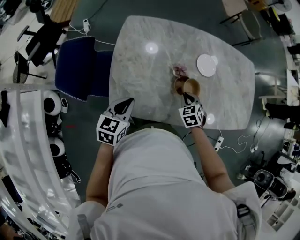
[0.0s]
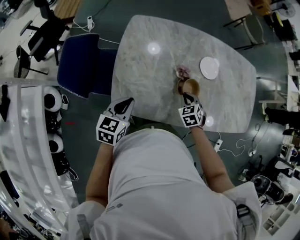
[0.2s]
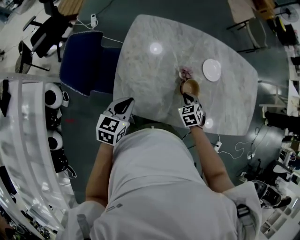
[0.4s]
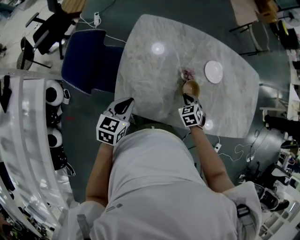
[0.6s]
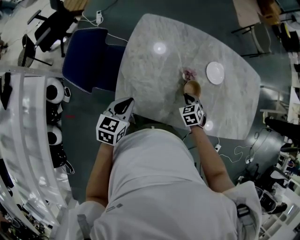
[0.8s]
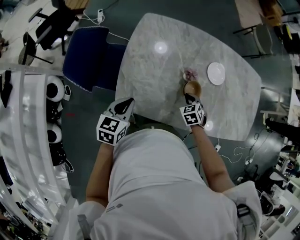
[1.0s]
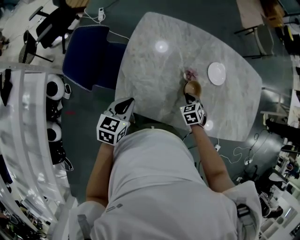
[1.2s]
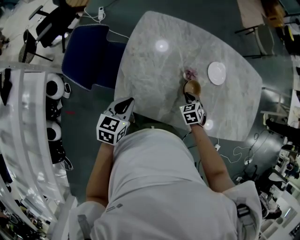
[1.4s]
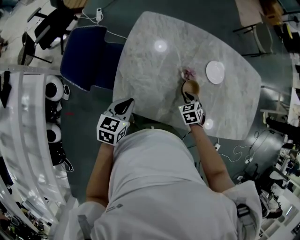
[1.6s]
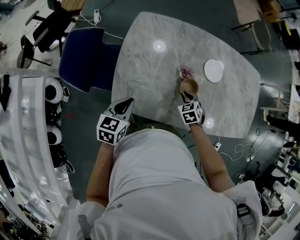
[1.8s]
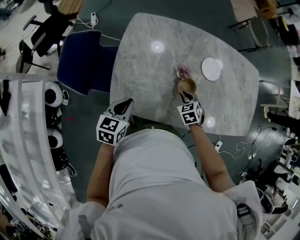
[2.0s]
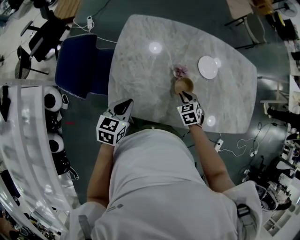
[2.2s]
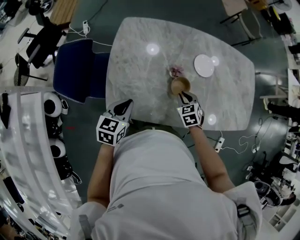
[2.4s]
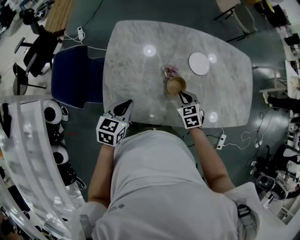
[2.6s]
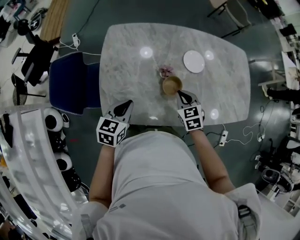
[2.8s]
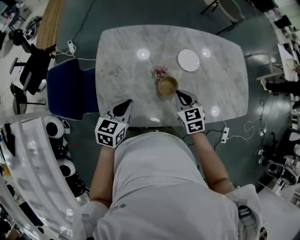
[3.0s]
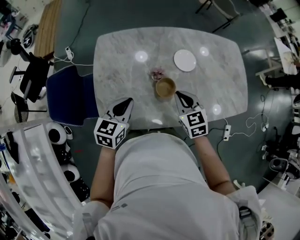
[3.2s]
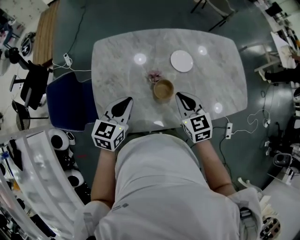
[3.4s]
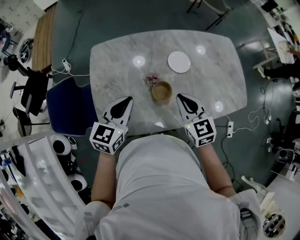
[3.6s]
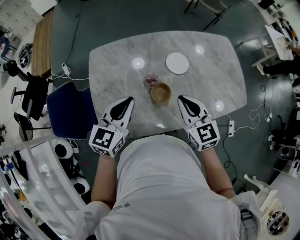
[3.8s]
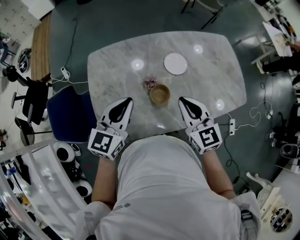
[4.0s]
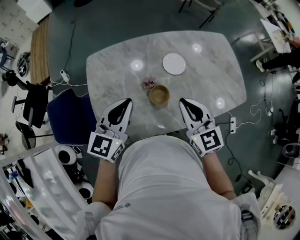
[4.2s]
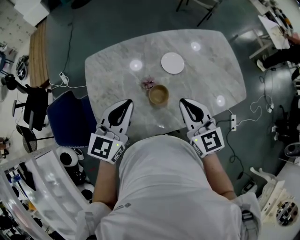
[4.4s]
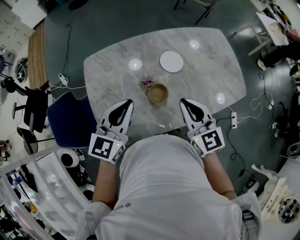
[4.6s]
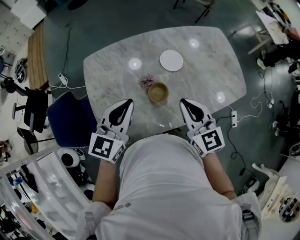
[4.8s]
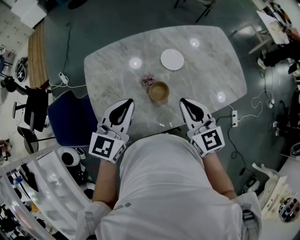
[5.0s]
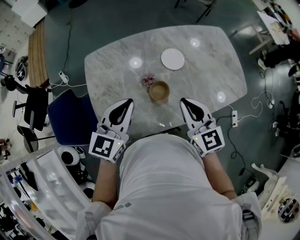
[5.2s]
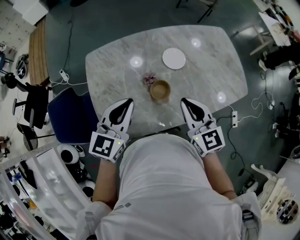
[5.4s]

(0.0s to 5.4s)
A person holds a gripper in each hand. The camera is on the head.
0.0s - 1.4s: The grippers move only a little.
1.4s - 2.8s: The right gripper is displaced upward by about 10 cm, and changes its angle by roughly 20 degrees; the left gripper moves to the right, some 5 cm.
2.8s - 4.0s: The left gripper shifts roughly 15 cm upward and forward, and rotates approximately 30 degrees. Meanwhile the right gripper travels upward by roughly 20 cm, and rotates about 30 degrees.
4.0s - 5.4s: There are only small adjustments of the grippers.

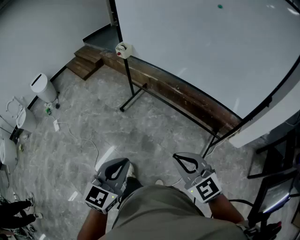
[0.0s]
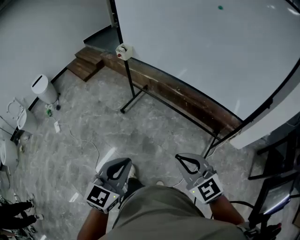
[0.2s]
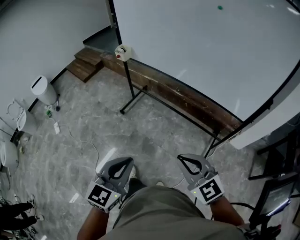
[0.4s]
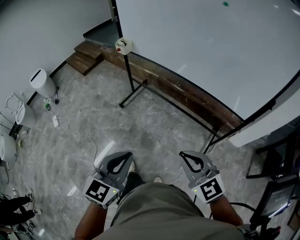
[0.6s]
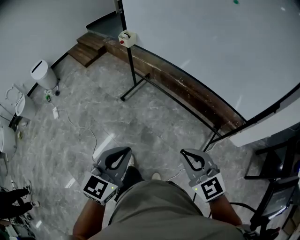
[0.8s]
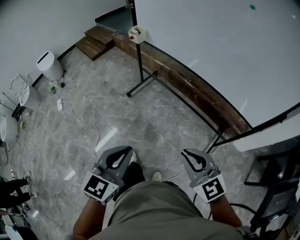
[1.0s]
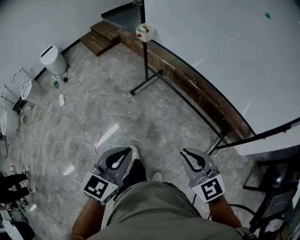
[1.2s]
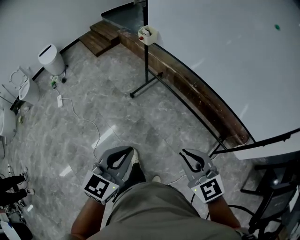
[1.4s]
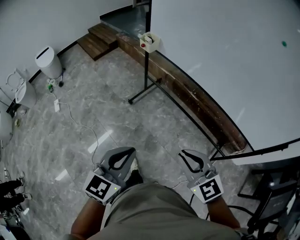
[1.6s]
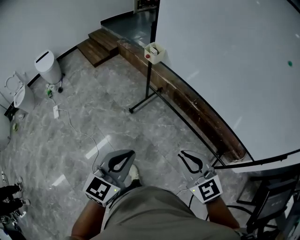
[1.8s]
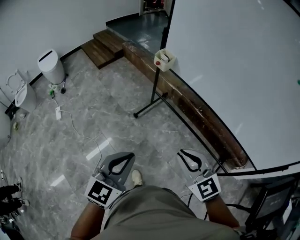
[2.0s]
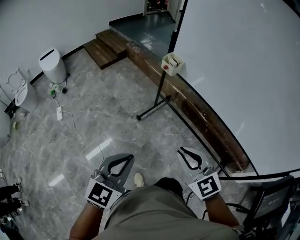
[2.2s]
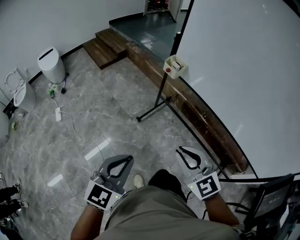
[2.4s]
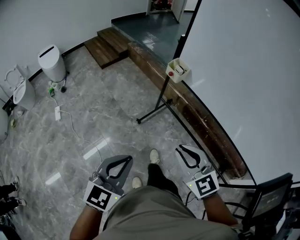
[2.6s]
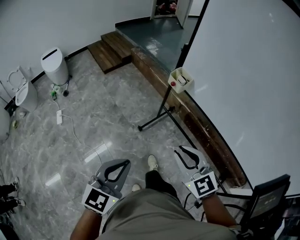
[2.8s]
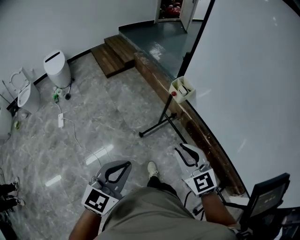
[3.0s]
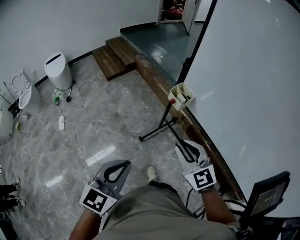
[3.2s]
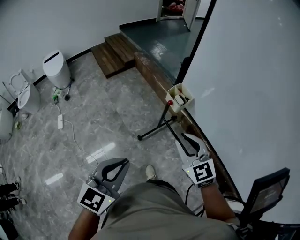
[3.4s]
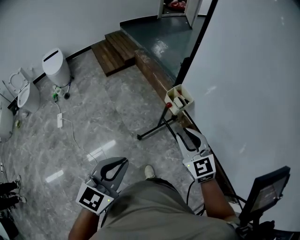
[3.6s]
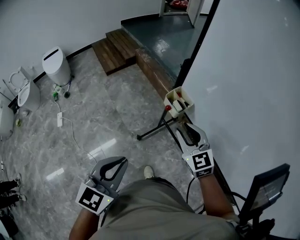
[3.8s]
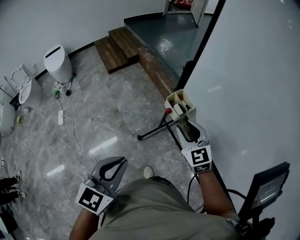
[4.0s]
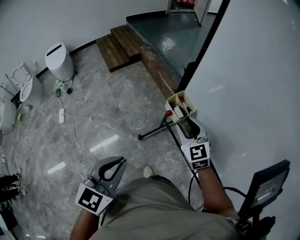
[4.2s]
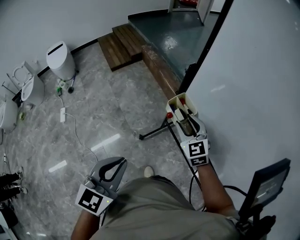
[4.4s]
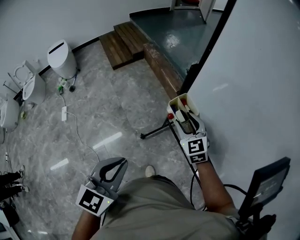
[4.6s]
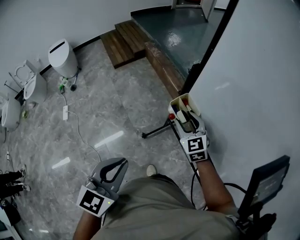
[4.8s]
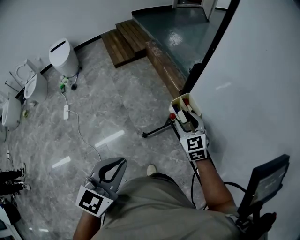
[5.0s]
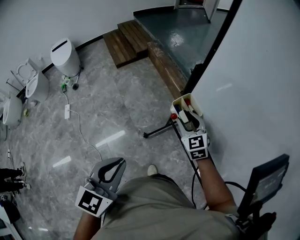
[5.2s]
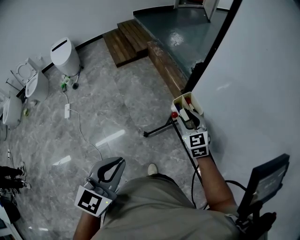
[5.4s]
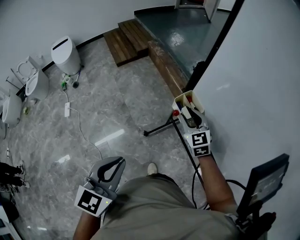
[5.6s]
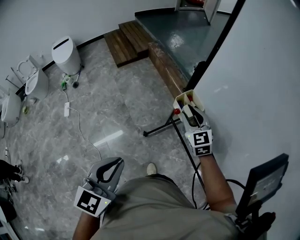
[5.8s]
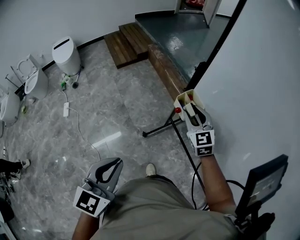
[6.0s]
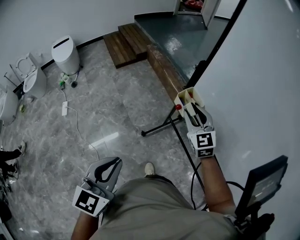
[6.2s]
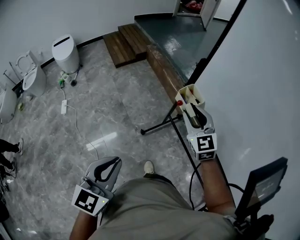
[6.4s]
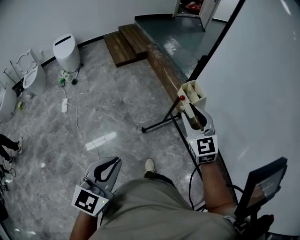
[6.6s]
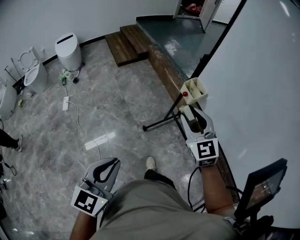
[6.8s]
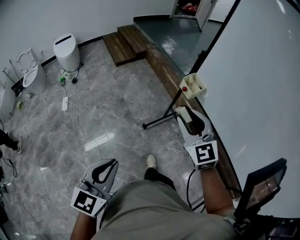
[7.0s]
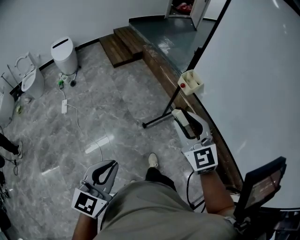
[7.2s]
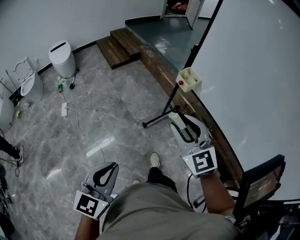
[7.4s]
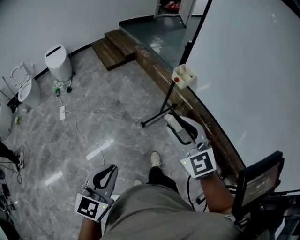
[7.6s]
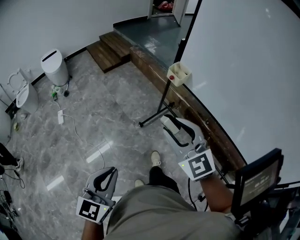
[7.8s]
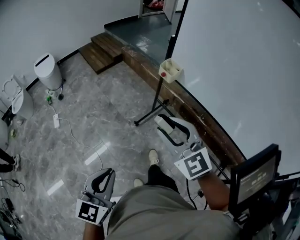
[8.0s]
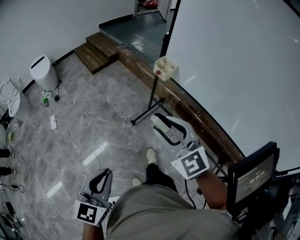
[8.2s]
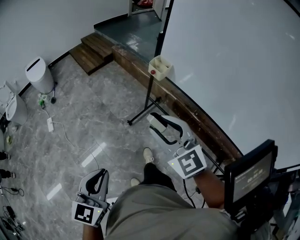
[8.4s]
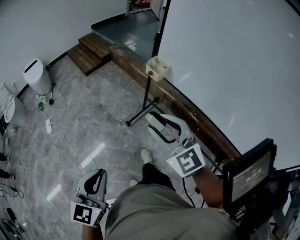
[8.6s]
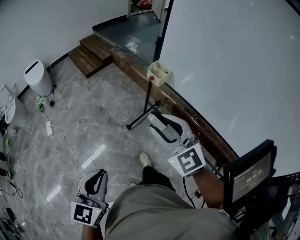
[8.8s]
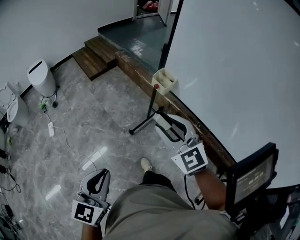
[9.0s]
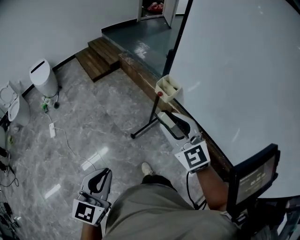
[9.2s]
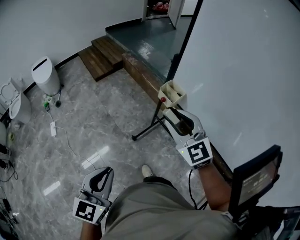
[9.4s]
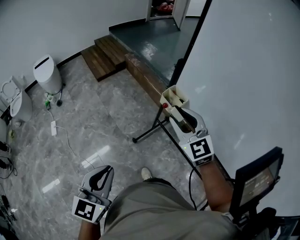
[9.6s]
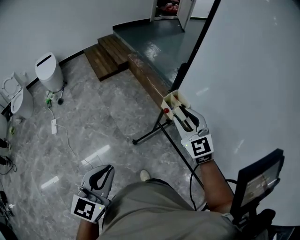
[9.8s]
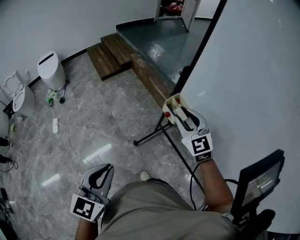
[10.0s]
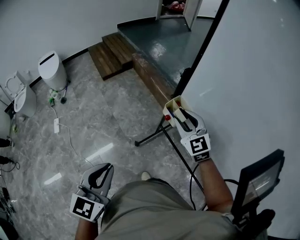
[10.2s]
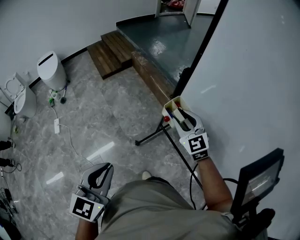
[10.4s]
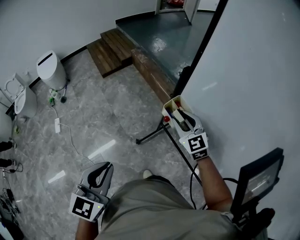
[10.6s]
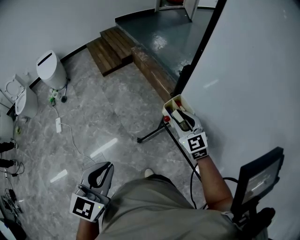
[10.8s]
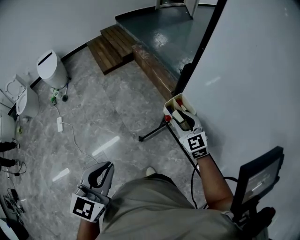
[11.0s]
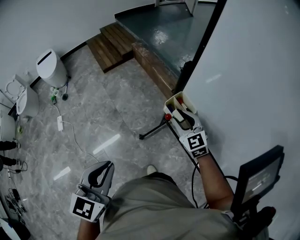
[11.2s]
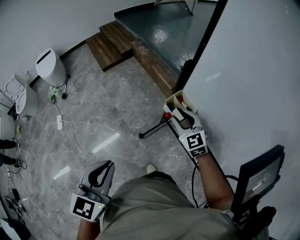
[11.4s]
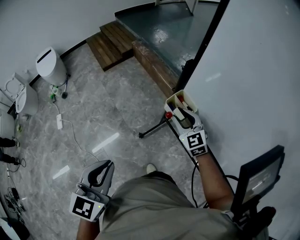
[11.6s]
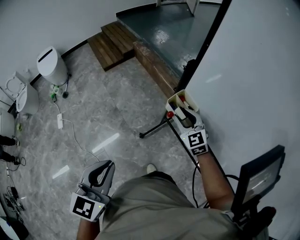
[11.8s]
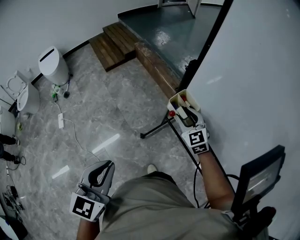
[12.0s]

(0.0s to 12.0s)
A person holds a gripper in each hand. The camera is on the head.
0.0s - 1.6s: Both grippers move forward and to the left, approximately 20 cm.
1.6s - 3.0s: Both grippers travel together forward and to the left, about 35 cm.
3.0s - 4.4s: The right gripper travels forward by about 30 cm, and opens its fingers. Meanwhile the left gripper is displaced forward by roughly 20 cm.
4.4s - 6.0s: The left gripper ends up roughly 5 cm from where it was.
6.0s - 7.6s: Both grippers travel together backward and to the left, about 35 cm.
7.6s - 9.0s: The grippers both shift forward and to the right by about 10 cm.
9.0s - 10.4s: Both grippers move forward, roughly 25 cm.
10.4s - 12.0s: The right gripper heads downward, covering about 5 cm.

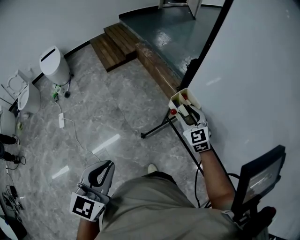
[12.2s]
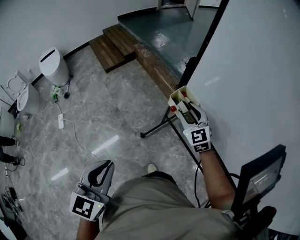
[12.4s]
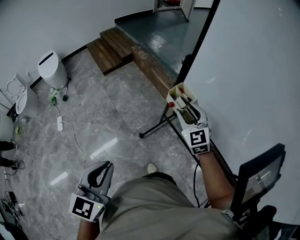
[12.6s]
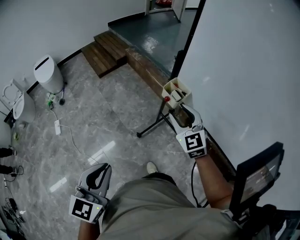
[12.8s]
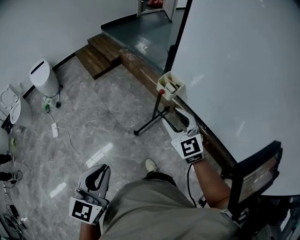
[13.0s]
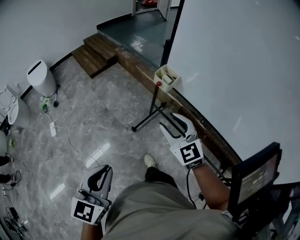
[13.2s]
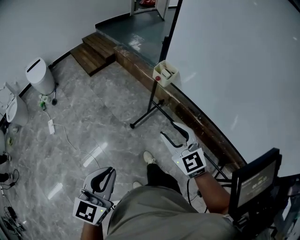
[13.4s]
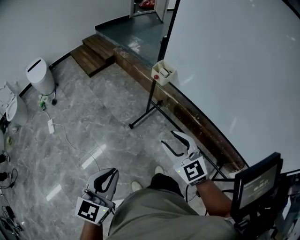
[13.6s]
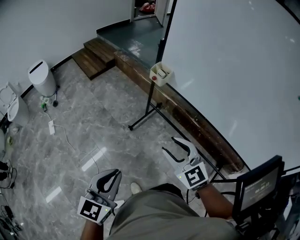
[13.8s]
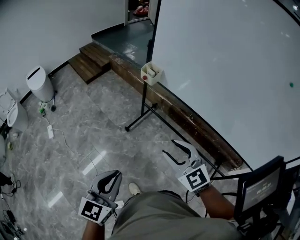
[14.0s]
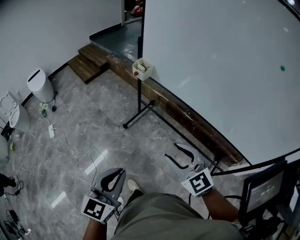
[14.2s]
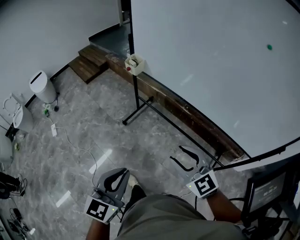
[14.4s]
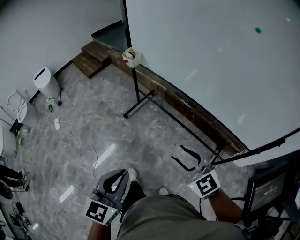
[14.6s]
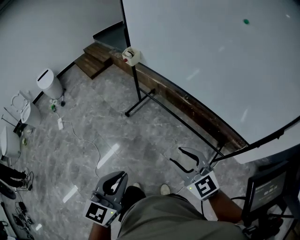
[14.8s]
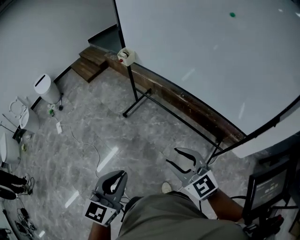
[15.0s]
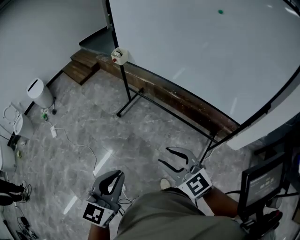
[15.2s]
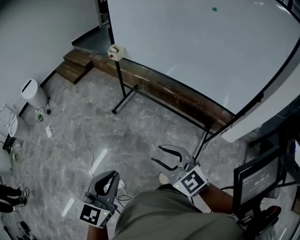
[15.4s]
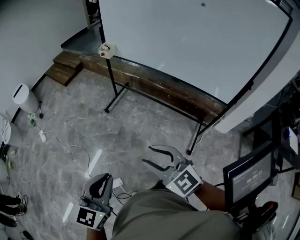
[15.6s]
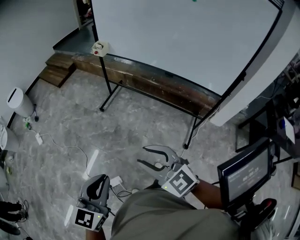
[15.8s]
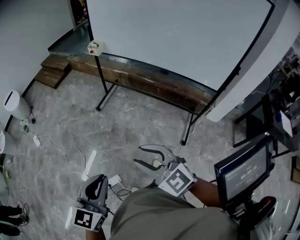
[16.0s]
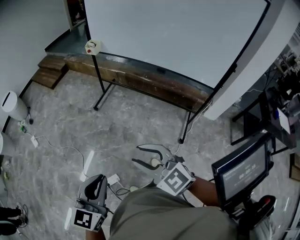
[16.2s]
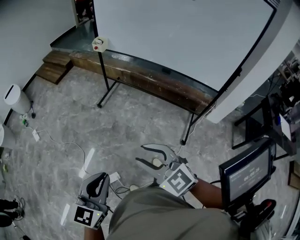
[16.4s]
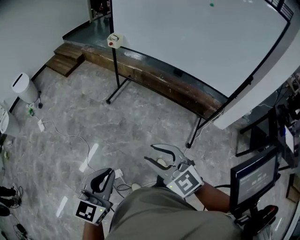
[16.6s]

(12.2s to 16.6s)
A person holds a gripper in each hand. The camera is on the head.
12.2s - 13.6s: The right gripper heads backward, covering approximately 40 cm; the left gripper goes approximately 30 cm backward.
13.6s - 15.2s: The two grippers travel together, backward and to the right, about 40 cm.
15.2s - 16.6s: The grippers both shift to the left and backward by roughly 20 cm.

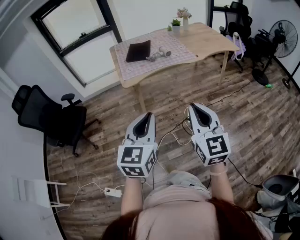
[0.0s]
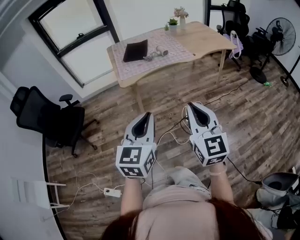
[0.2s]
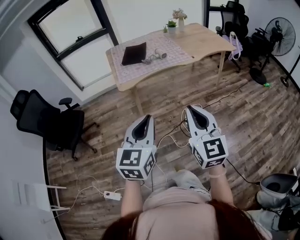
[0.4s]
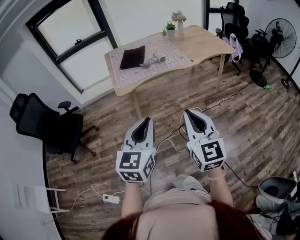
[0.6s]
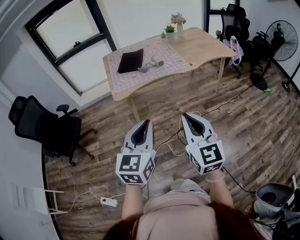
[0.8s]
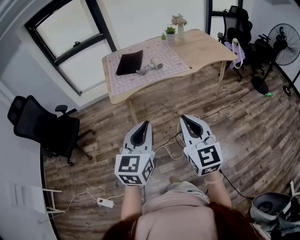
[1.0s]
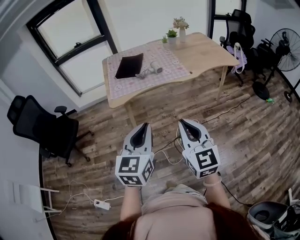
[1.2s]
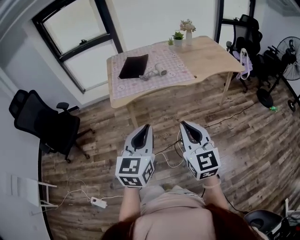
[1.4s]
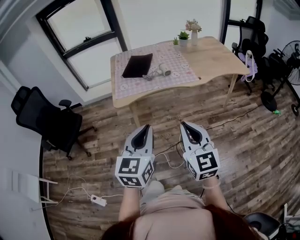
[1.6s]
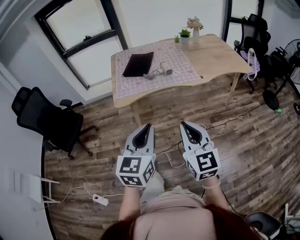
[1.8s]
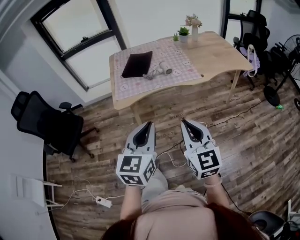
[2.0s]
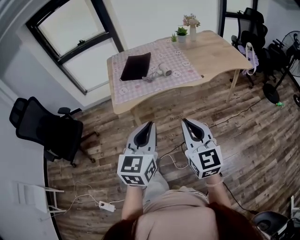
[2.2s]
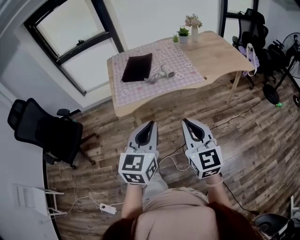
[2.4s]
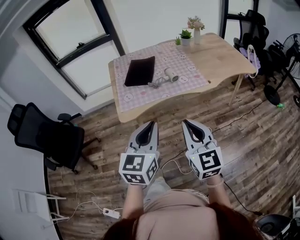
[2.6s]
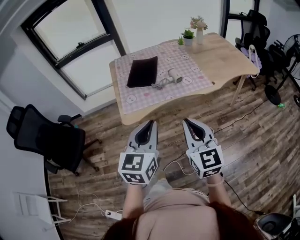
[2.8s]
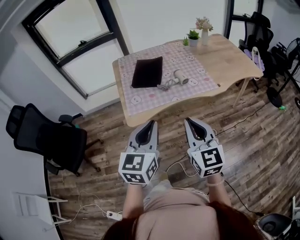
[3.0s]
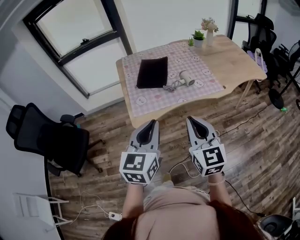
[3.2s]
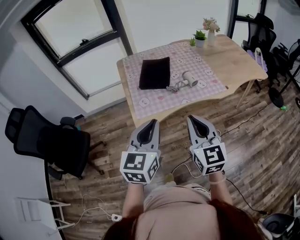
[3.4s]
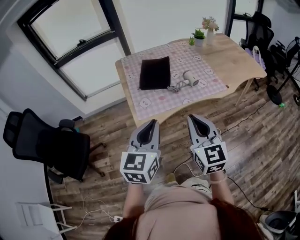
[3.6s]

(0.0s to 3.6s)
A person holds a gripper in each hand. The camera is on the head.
0.0s - 1.8s: Both grippers travel together forward and to the right, approximately 20 cm.
1.8s - 3.6s: Both grippers travel together forward and to the left, roughly 30 cm.
